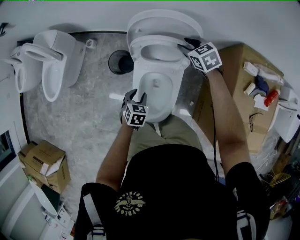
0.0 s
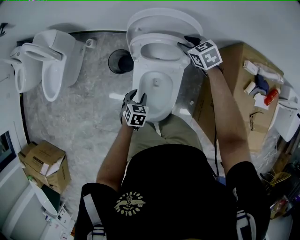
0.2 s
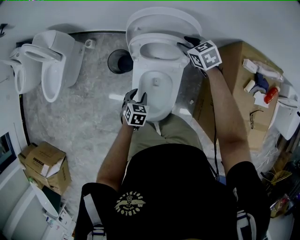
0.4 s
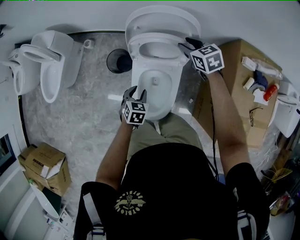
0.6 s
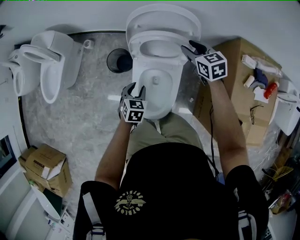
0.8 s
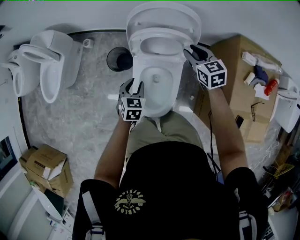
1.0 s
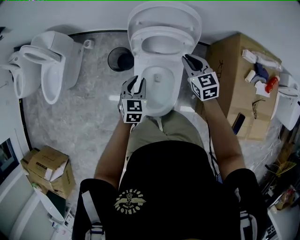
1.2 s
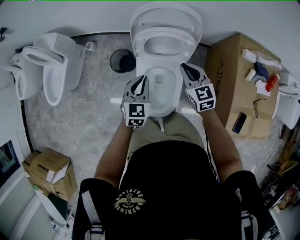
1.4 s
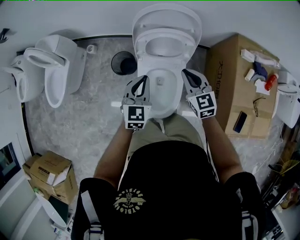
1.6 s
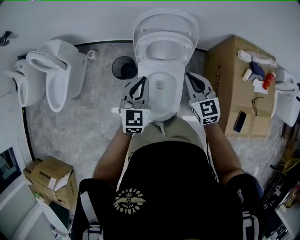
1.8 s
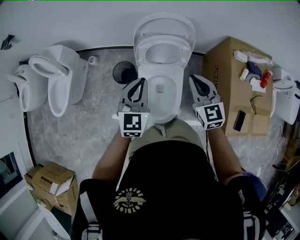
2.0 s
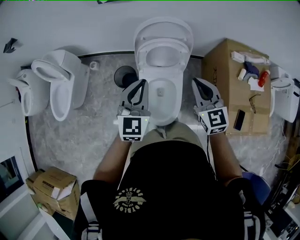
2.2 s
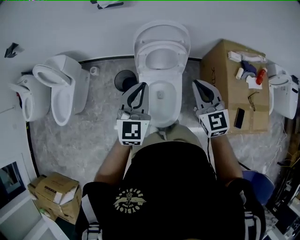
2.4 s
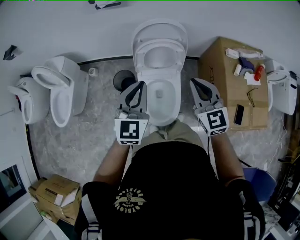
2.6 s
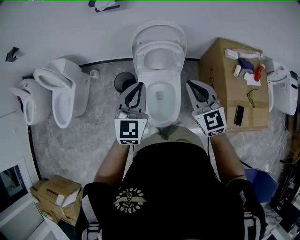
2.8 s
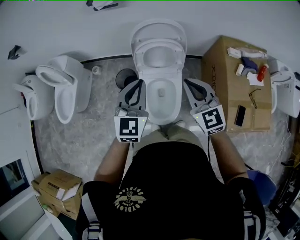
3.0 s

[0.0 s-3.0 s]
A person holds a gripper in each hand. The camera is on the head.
0.0 to 1.6 s: The left gripper moves upward, approximately 20 cm, points its fingers about 30 degrees further upward, and closes up. The right gripper moves backward, about 20 cm, swivels roughly 30 degrees, and closes up.
1.6 to 3.0 s: The left gripper moves upward, about 20 cm; the right gripper travels upward and backward by about 20 cm.

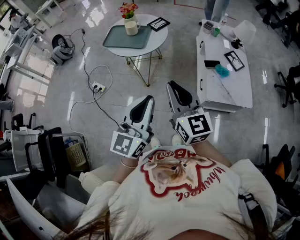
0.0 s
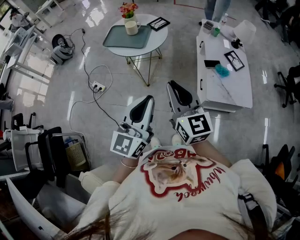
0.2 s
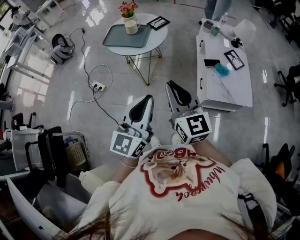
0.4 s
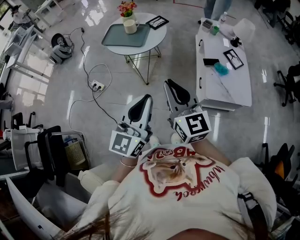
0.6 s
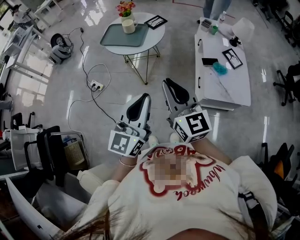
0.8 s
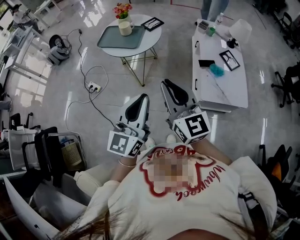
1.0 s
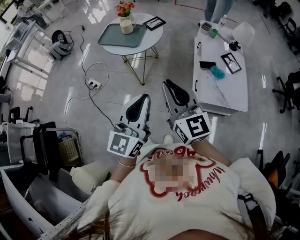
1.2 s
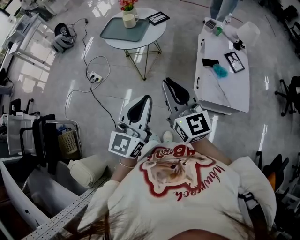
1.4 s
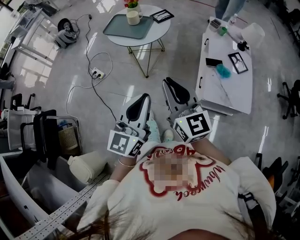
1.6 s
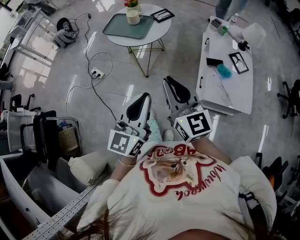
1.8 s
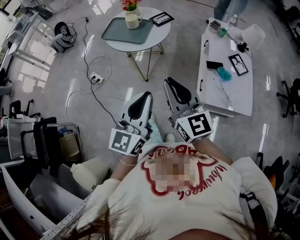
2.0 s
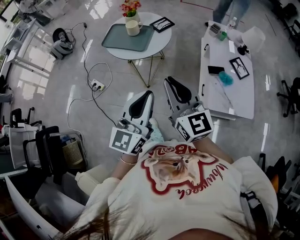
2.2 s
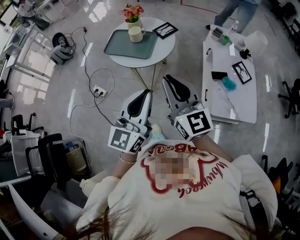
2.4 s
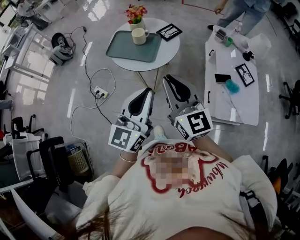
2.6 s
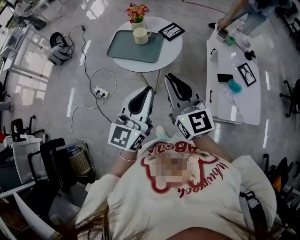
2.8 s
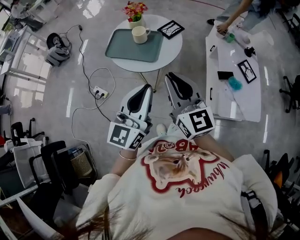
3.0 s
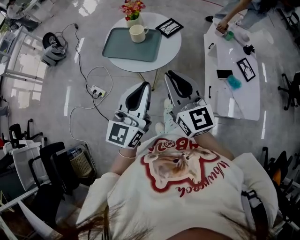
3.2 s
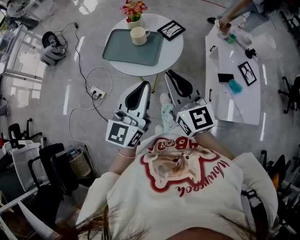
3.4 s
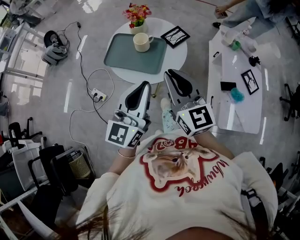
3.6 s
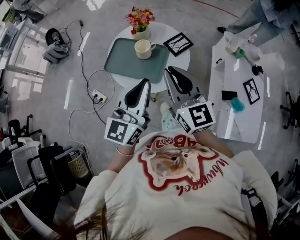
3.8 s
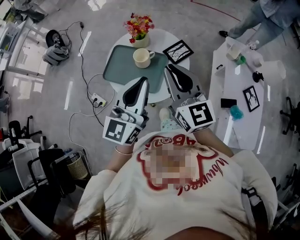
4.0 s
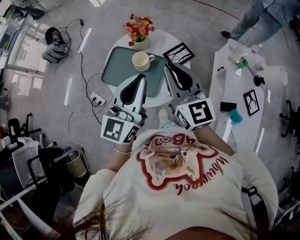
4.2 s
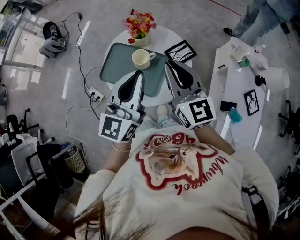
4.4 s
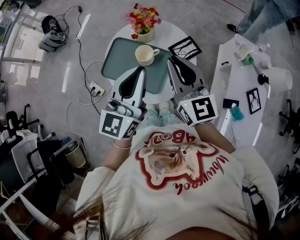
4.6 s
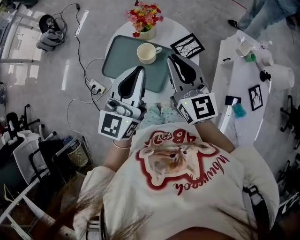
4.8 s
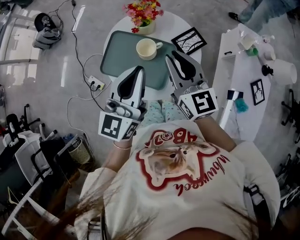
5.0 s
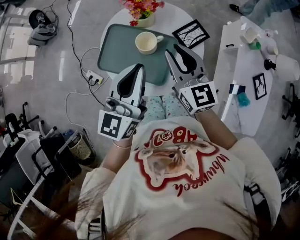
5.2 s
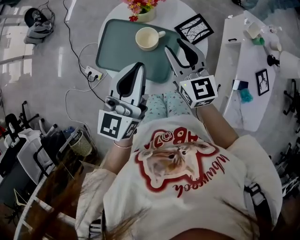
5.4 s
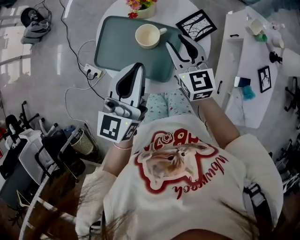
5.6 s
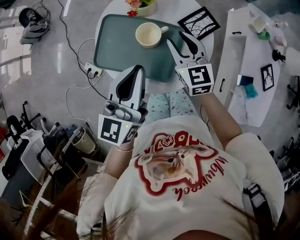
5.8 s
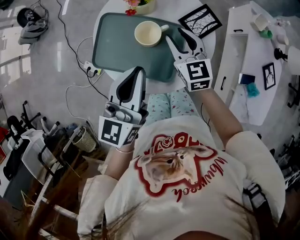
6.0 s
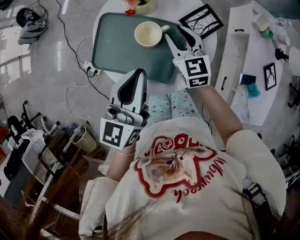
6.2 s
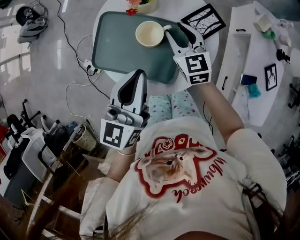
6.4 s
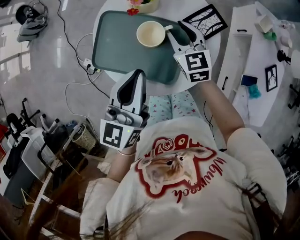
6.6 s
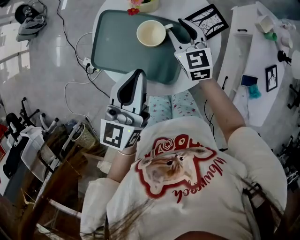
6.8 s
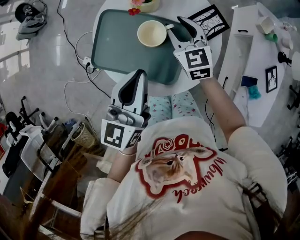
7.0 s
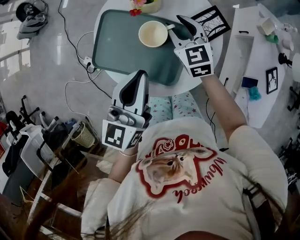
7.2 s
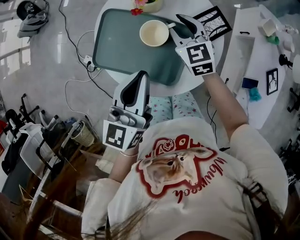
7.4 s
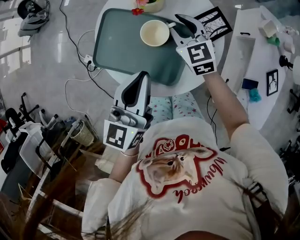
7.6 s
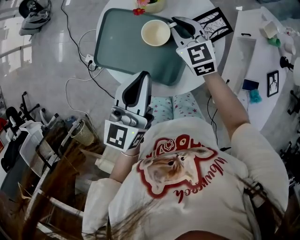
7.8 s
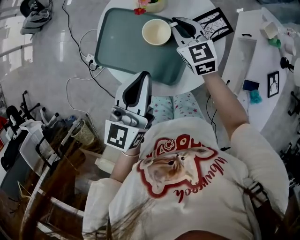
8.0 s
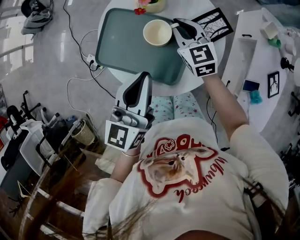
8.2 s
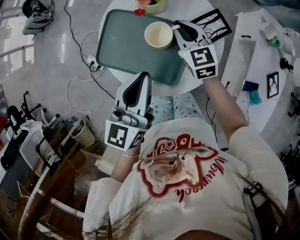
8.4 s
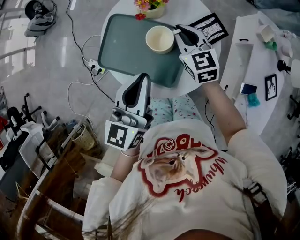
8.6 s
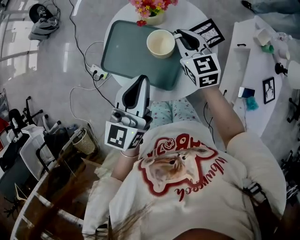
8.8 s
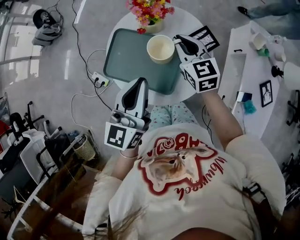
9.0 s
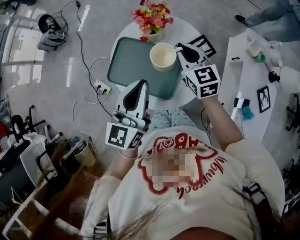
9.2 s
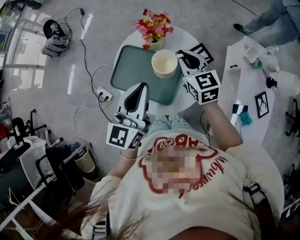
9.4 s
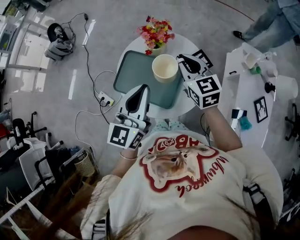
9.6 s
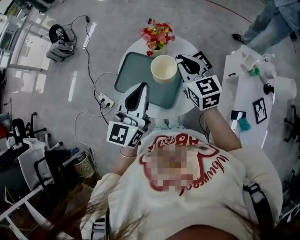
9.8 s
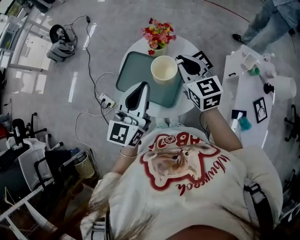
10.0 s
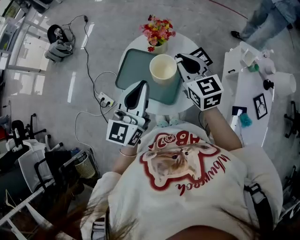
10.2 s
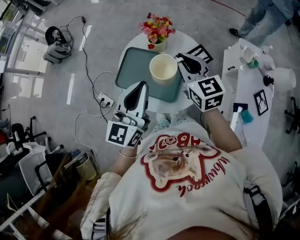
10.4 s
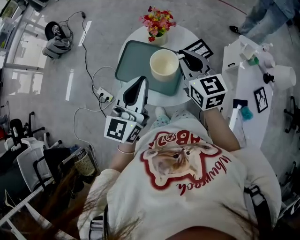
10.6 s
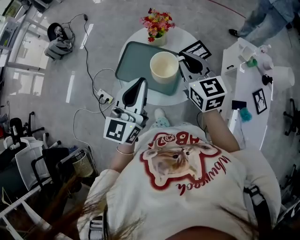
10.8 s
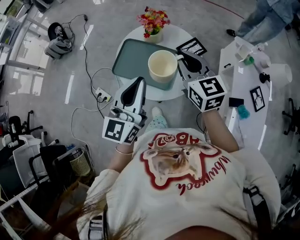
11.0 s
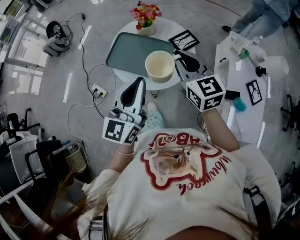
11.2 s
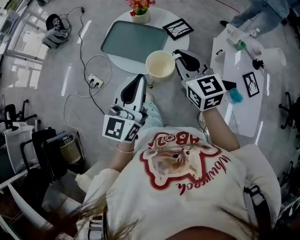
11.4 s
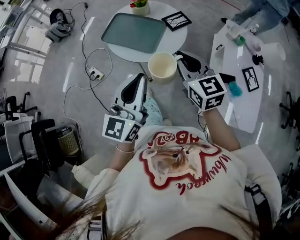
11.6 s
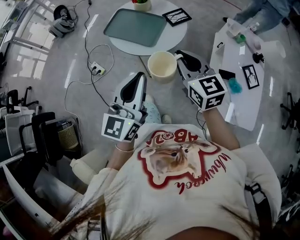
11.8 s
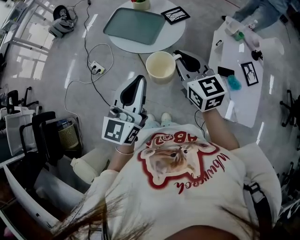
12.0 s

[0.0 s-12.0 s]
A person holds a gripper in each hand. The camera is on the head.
0.0 to 1.6 s: The left gripper moves about 5 cm.
1.6 to 3.0 s: Both grippers travel together forward and to the left, some 25 cm.
3.0 to 4.4 s: The two grippers go approximately 30 cm forward.
4.4 to 6.0 s: The right gripper is displaced downward and forward by some 25 cm, turns by approximately 20 degrees, and opens. The left gripper is displaced downward and to the left by roughly 15 cm.
6.0 to 7.6 s: The right gripper goes some 5 cm forward.
7.6 to 9.0 s: The right gripper moves upward, some 10 cm, and closes; the left gripper heads upward, covering some 5 cm.
9.0 to 10.4 s: The left gripper heads upward, covering approximately 5 cm; the right gripper heads upward and backward, covering approximately 15 cm.
10.4 to 12.0 s: The two grippers go some 30 cm backward.

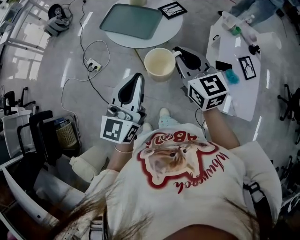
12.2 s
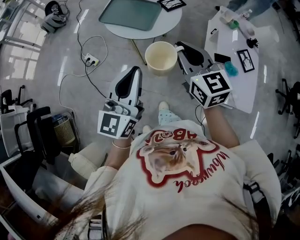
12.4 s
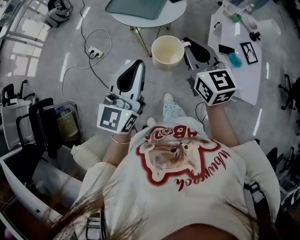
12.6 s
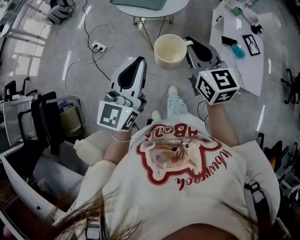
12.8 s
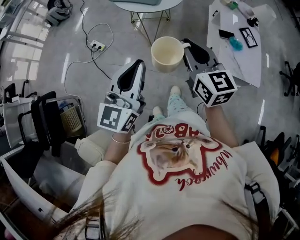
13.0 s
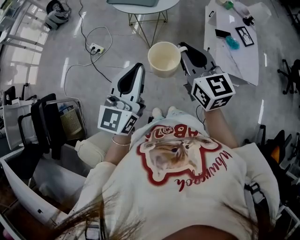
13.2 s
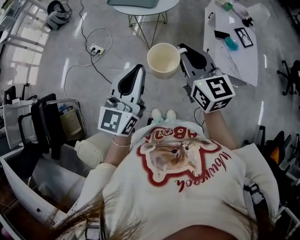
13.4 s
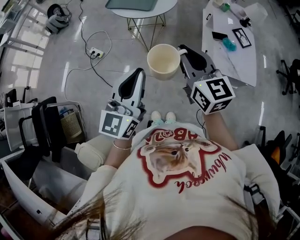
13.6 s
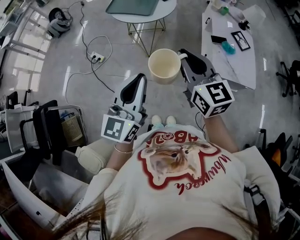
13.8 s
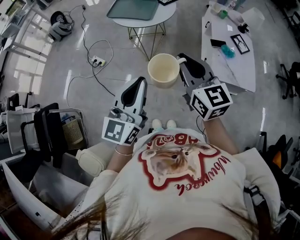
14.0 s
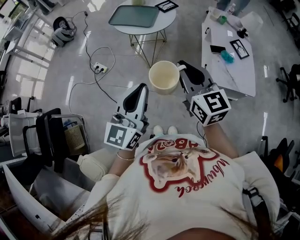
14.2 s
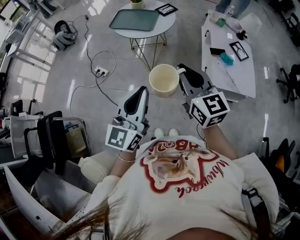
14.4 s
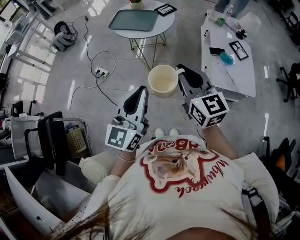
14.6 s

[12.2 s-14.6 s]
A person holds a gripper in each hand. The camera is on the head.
12.2 to 13.4 s: The grippers both shift backward by approximately 25 cm.
13.4 to 14.6 s: There are only small adjustments of the grippers.

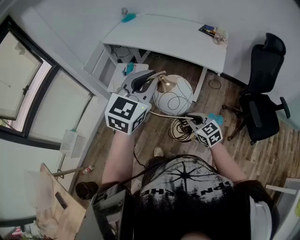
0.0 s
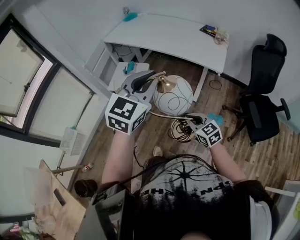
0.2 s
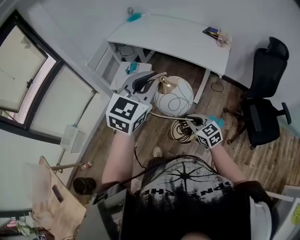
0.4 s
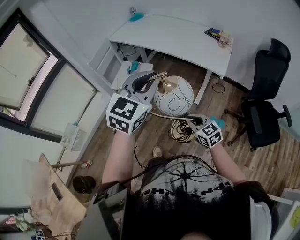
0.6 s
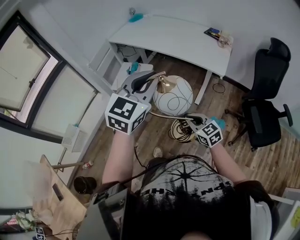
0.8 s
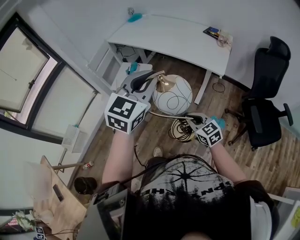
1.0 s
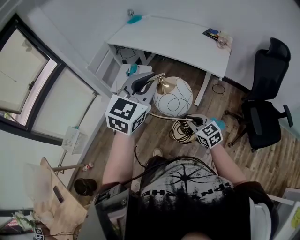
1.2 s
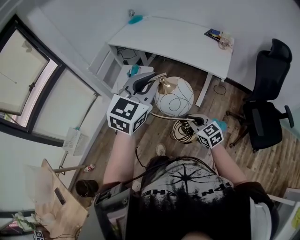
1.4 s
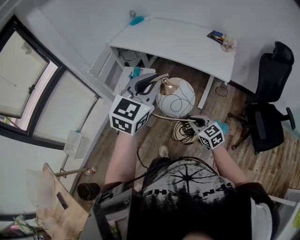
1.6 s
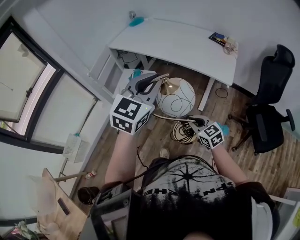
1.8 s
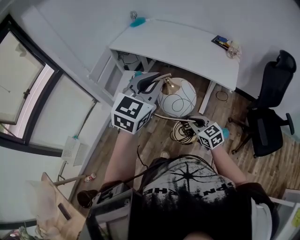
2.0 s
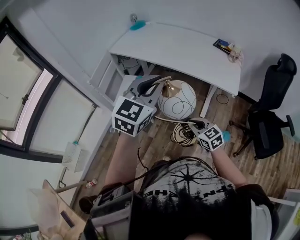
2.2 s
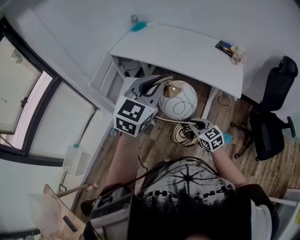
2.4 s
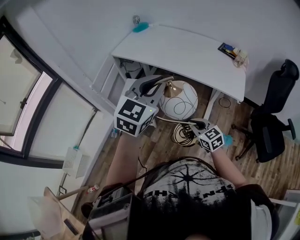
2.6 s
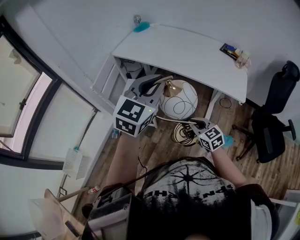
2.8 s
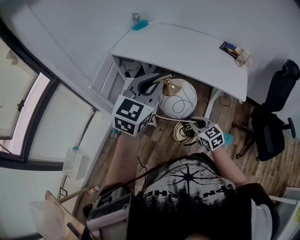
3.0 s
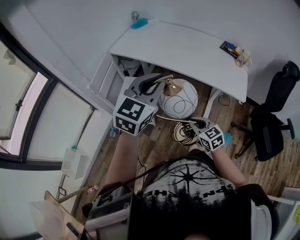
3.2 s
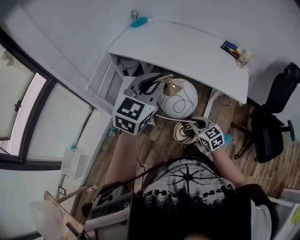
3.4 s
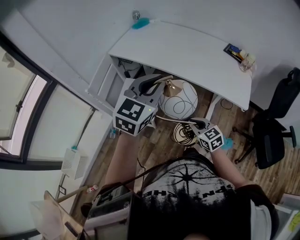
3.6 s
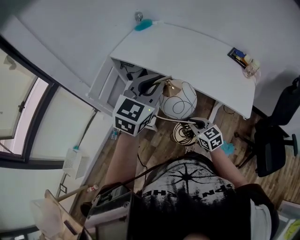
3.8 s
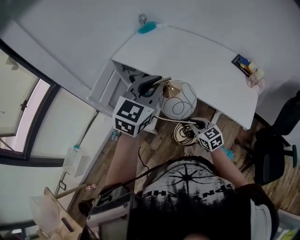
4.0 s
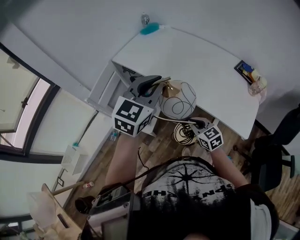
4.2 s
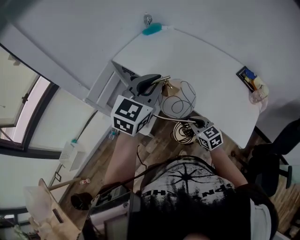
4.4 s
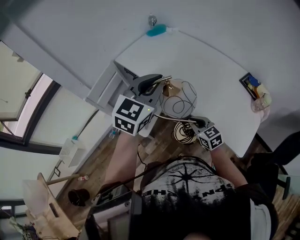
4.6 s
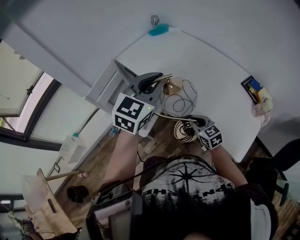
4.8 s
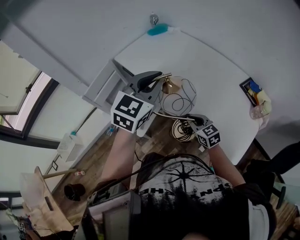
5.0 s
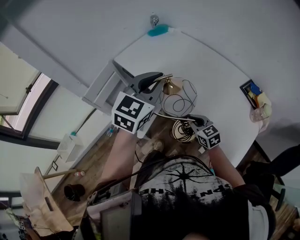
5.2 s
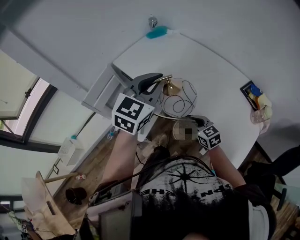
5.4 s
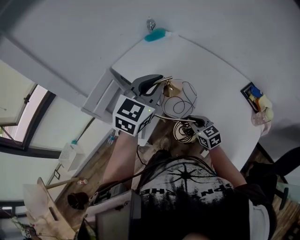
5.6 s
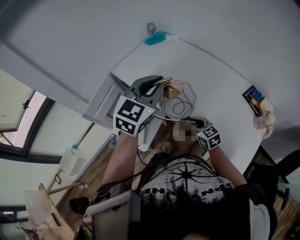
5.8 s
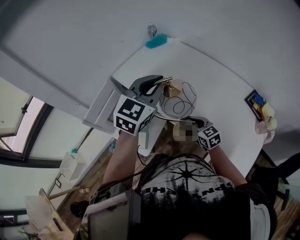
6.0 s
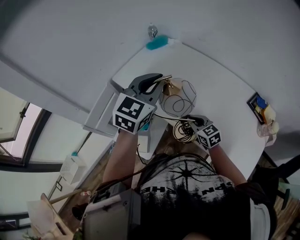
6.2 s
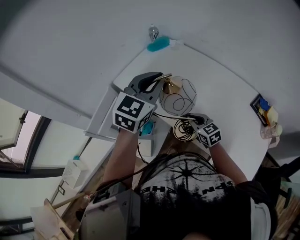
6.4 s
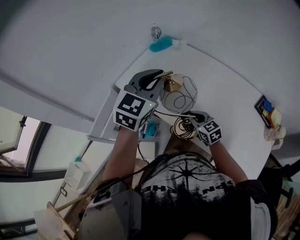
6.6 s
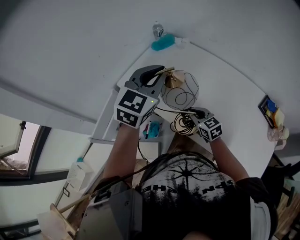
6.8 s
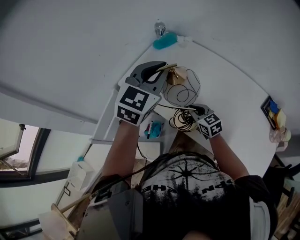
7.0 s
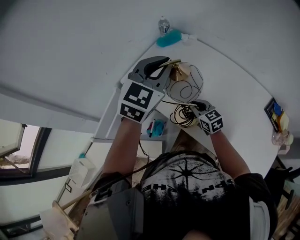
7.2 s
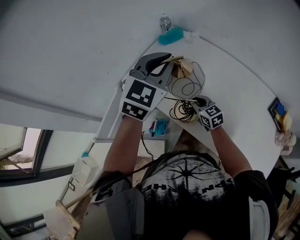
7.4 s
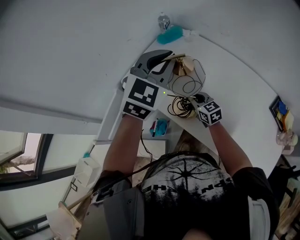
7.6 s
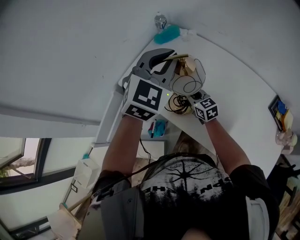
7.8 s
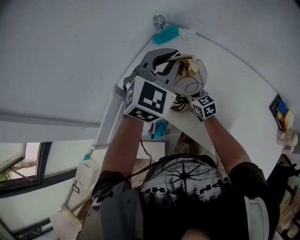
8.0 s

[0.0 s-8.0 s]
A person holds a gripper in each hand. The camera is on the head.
0.0 to 1.6 s: The grippers stay close to where they were, moving slightly.
1.6 to 3.2 s: Both grippers move forward and to the left, roughly 20 cm.
3.2 to 4.8 s: The grippers both shift forward and to the right by approximately 30 cm.
4.8 to 6.4 s: The grippers both shift forward by some 20 cm.
6.4 to 8.0 s: Both grippers travel together forward, about 20 cm. The left gripper rotates some 20 degrees.
